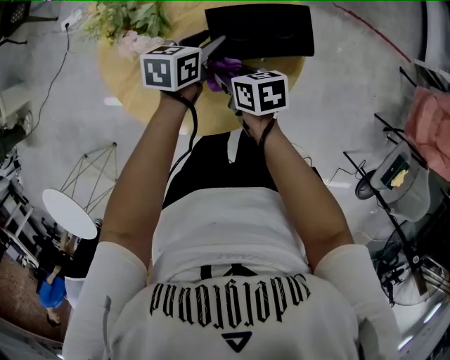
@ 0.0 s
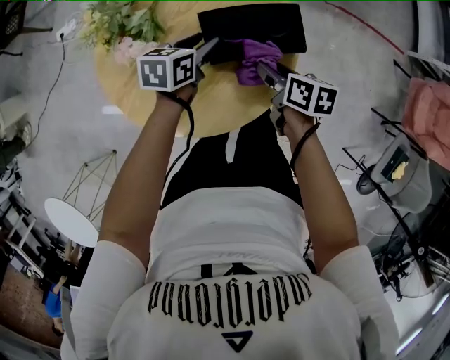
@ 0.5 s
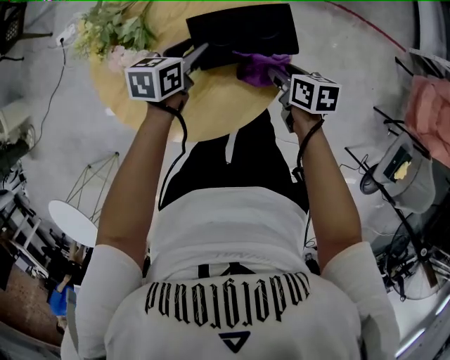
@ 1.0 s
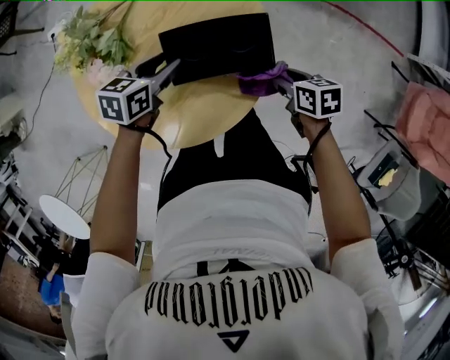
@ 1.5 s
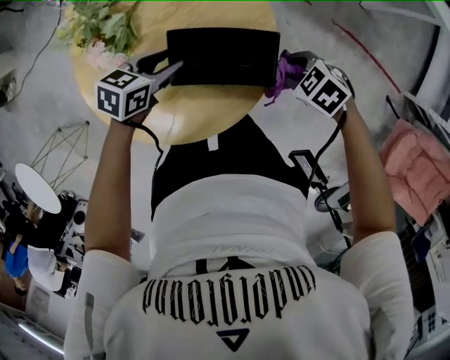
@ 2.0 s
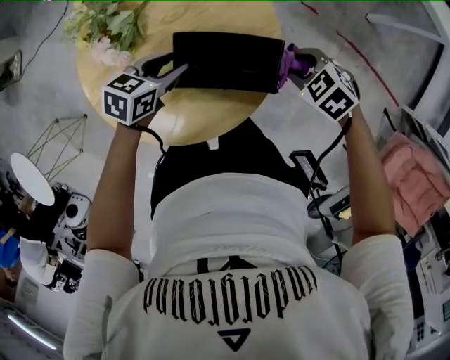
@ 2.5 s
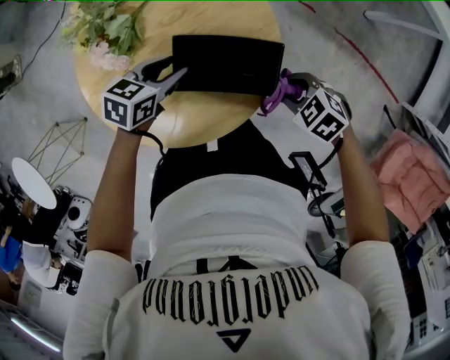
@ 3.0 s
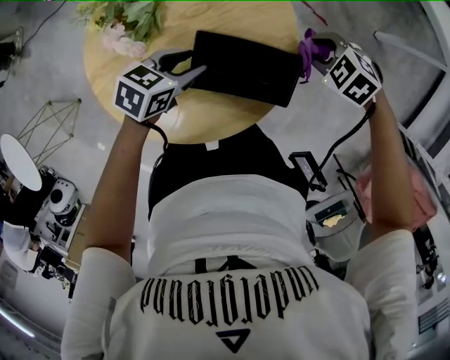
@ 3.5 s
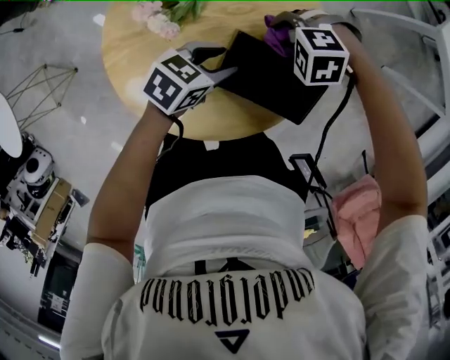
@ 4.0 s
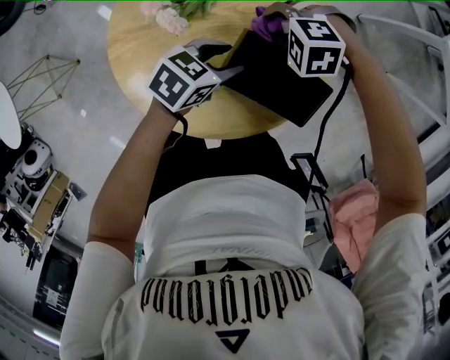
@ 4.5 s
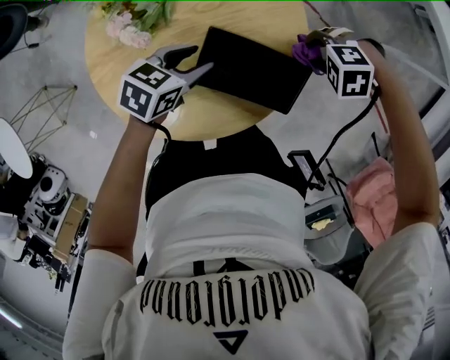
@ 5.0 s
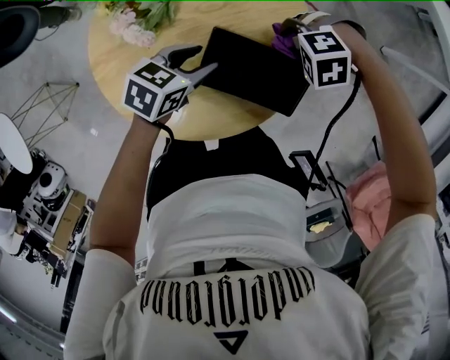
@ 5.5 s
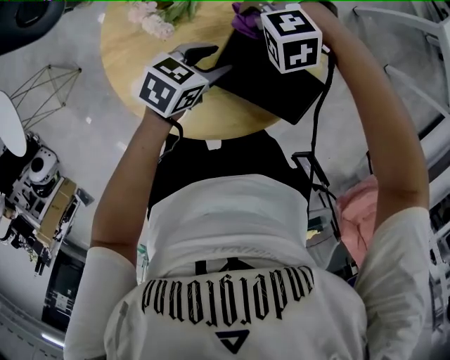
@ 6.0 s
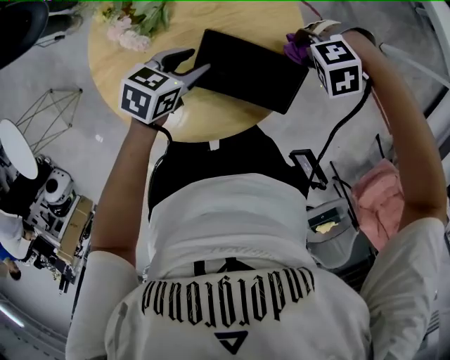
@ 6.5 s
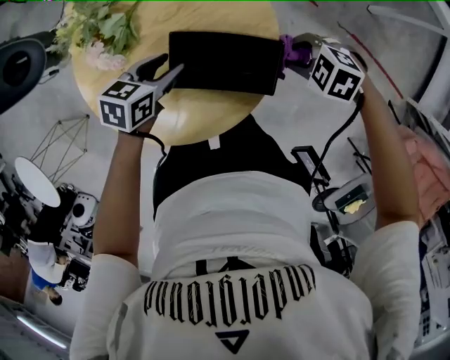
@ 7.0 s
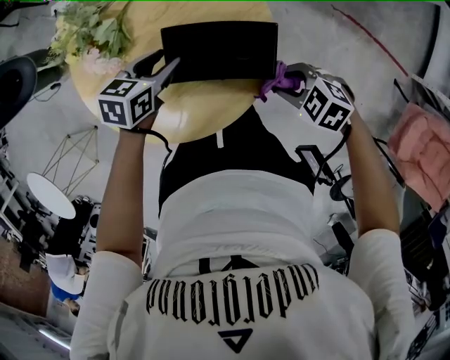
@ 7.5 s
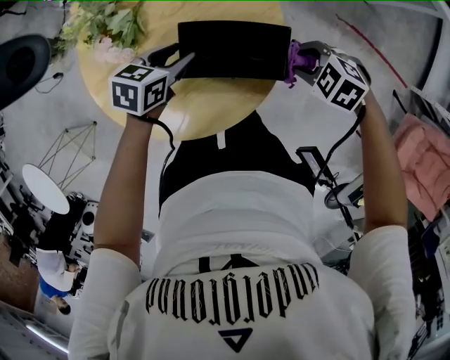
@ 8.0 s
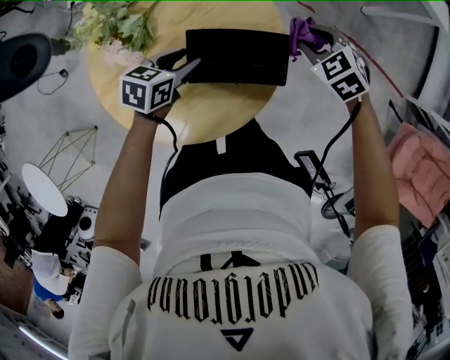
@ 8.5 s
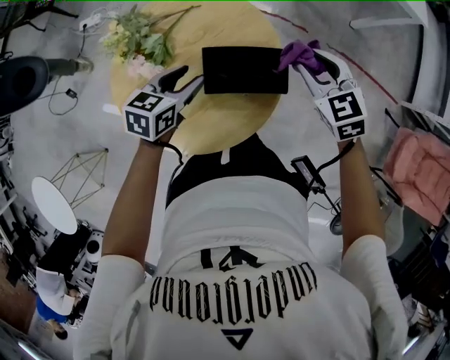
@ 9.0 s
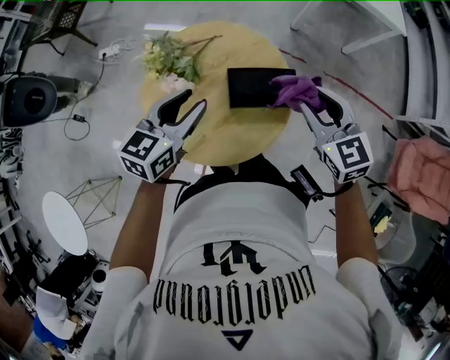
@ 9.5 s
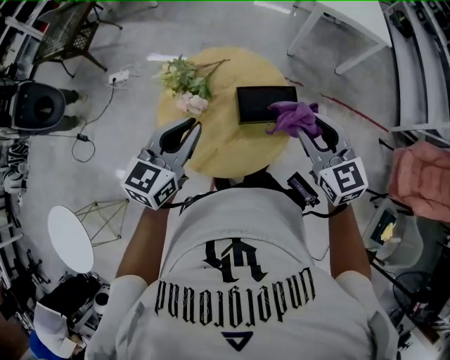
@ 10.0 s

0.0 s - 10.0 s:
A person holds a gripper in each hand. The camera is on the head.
0.0 s - 2.0 s: The right gripper ends up about 25 cm from where it was, and rolls counterclockwise, seen from behind, by roughly 60 degrees.
2.0 s - 4.0 s: The left gripper shifts by about 5 cm. Meanwhile the right gripper moves roughly 15 cm, and twists approximately 60 degrees counterclockwise, seen from behind.
6.0 s - 8.0 s: The right gripper ends up approximately 20 cm from where it was, and twists about 60 degrees clockwise, seen from behind.
8.0 s - 10.0 s: Both grippers move upward, about 35 cm. The right gripper tips its fingers upward by approximately 40 degrees. Meanwhile the left gripper tilts its fingers about 30 degrees upward, and closes.

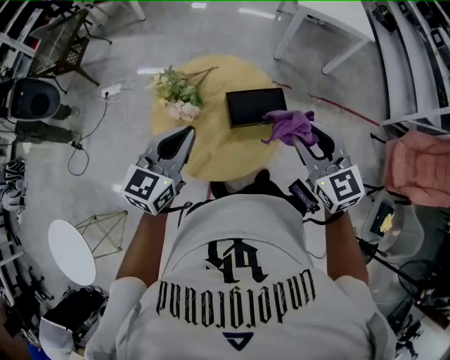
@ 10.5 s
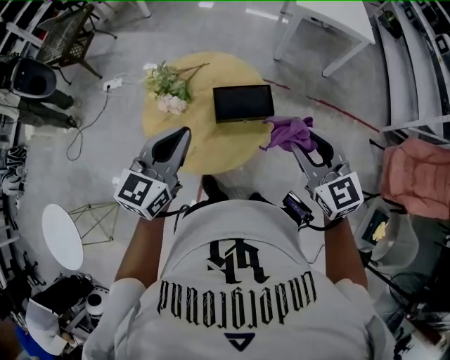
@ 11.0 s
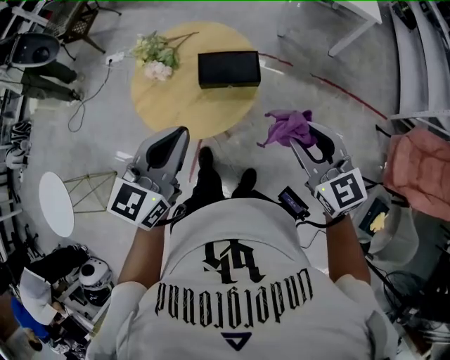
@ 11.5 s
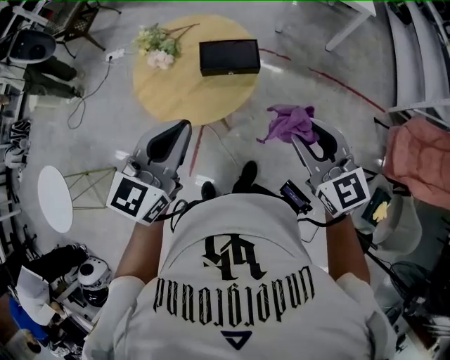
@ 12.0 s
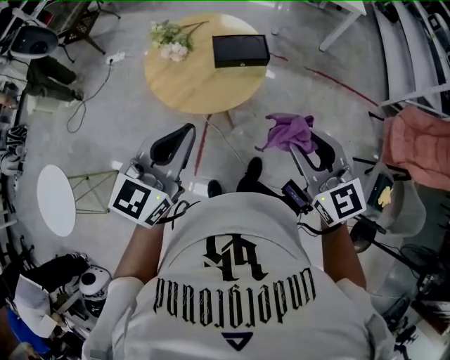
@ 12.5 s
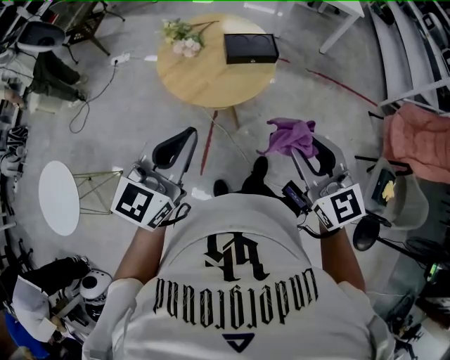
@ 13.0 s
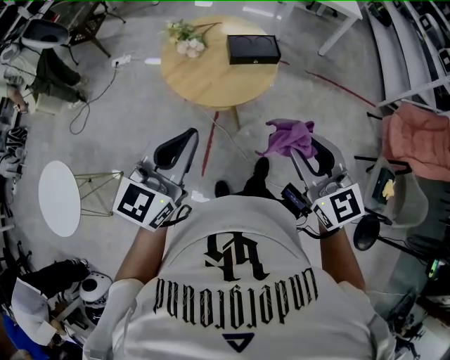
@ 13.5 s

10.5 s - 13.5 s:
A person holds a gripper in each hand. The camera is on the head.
10.5 s - 12.0 s: The two grippers go some 25 cm backward and to the right.
12.0 s - 13.5 s: Both grippers travel together backward and to the left, about 25 cm.

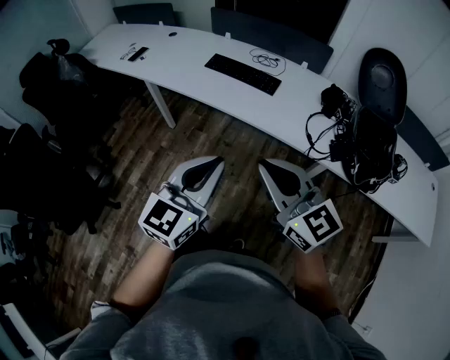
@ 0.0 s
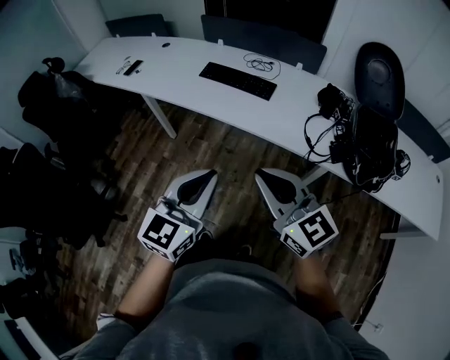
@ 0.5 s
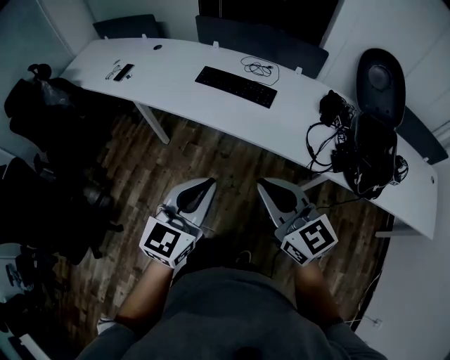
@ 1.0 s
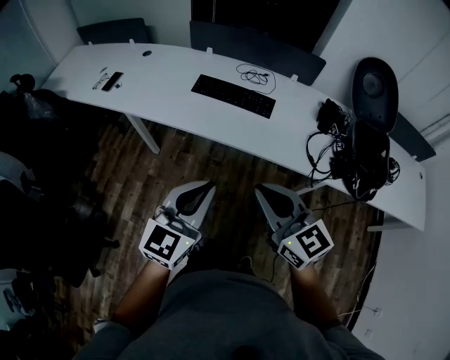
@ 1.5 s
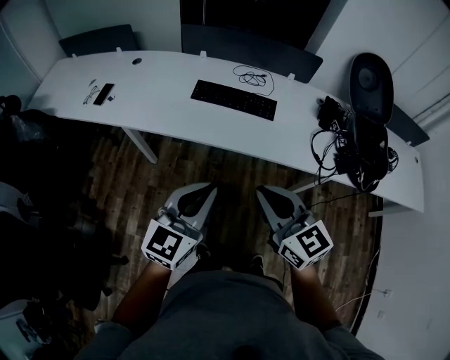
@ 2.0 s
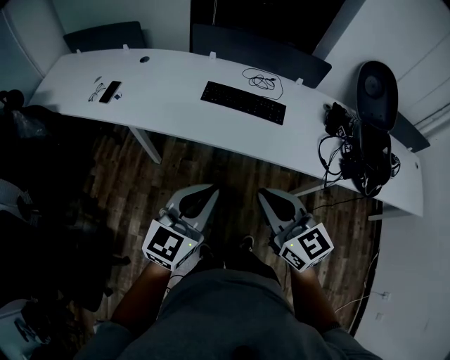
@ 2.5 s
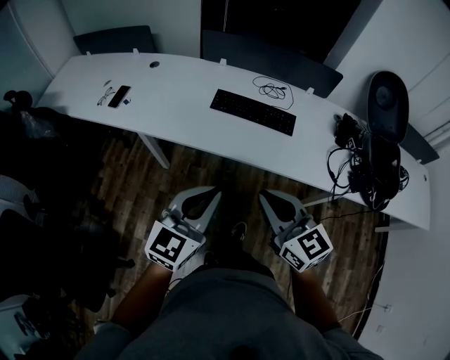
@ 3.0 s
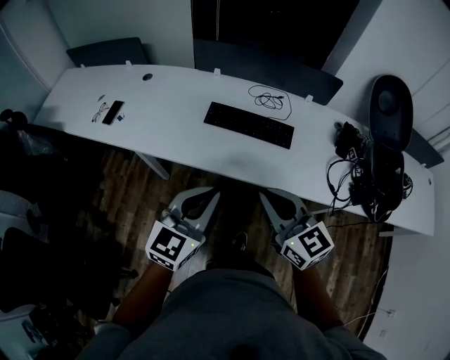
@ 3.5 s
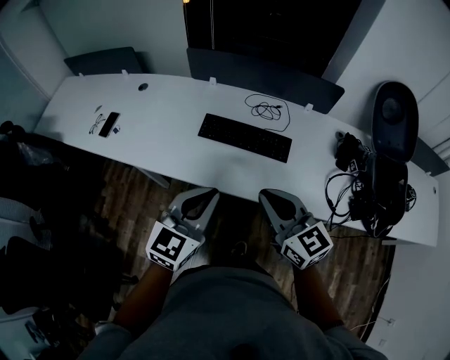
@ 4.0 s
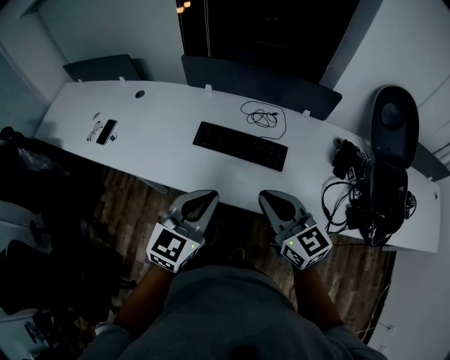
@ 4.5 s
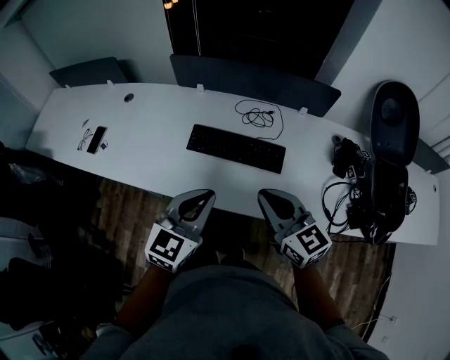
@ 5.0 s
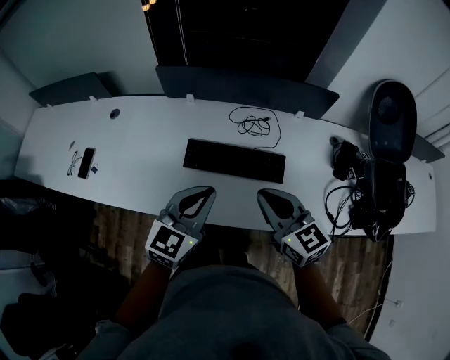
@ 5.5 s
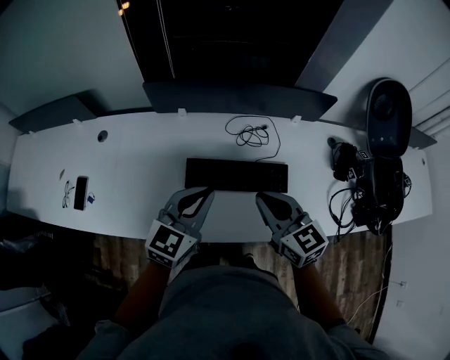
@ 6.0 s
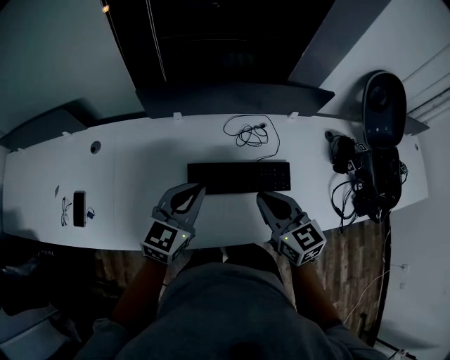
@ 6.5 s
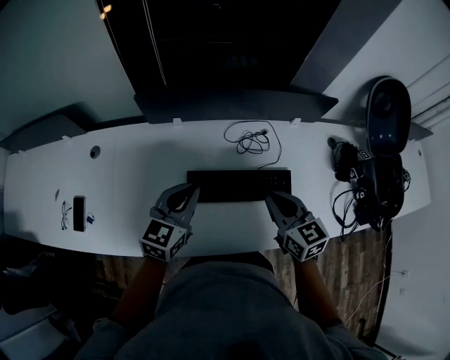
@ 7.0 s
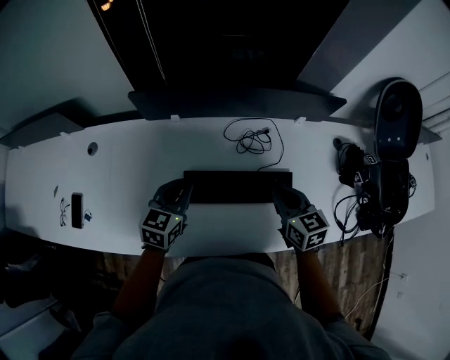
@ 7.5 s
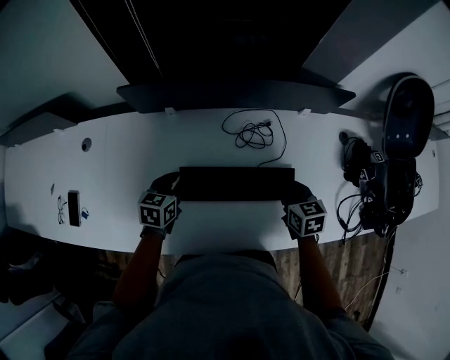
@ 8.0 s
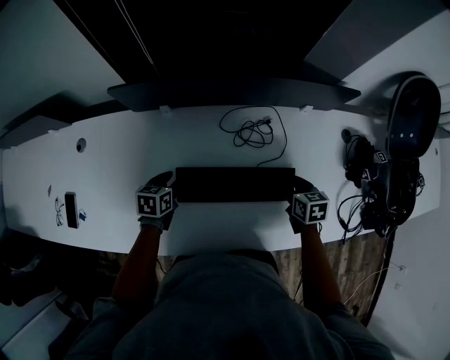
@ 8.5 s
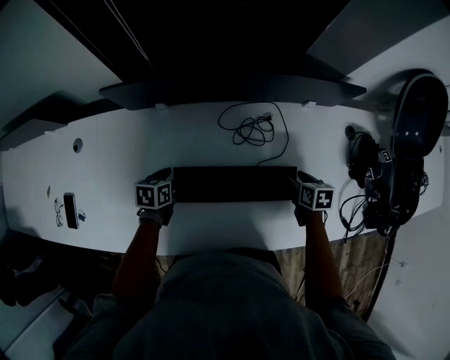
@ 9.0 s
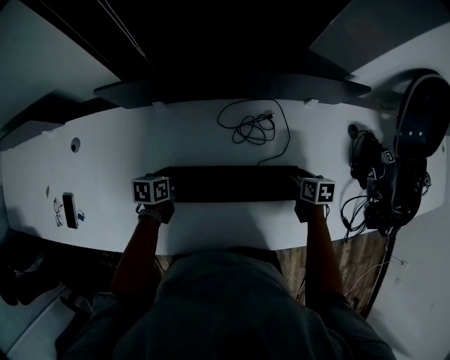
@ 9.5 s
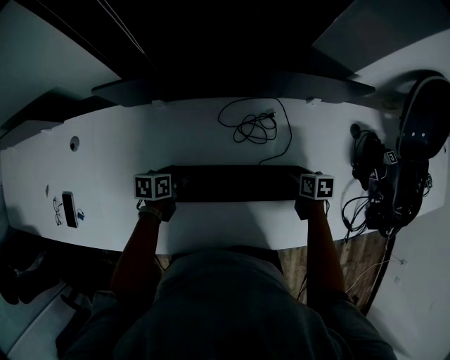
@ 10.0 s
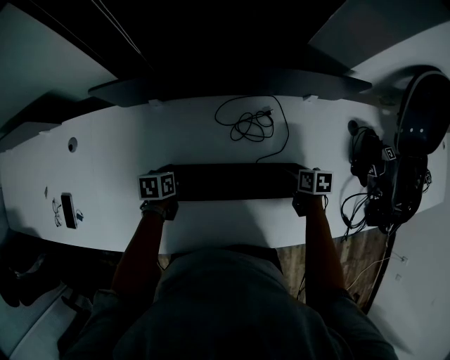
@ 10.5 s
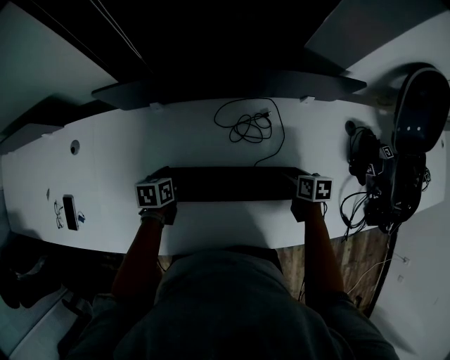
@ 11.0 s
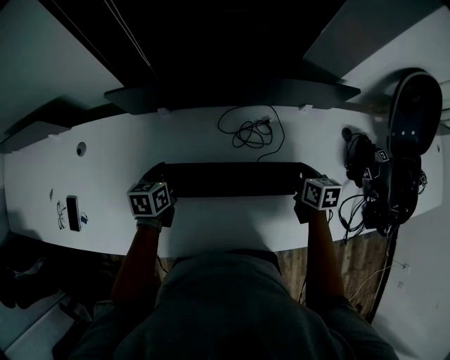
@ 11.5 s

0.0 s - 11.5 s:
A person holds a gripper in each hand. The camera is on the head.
0.0 s - 2.0 s: Both grippers move forward and to the left, roughly 25 cm. The right gripper changes its angle by about 20 degrees.
2.0 s - 4.0 s: Both grippers travel together forward, approximately 20 cm.
4.0 s - 6.0 s: The two grippers go some 25 cm forward.
6.0 s - 7.5 s: The right gripper is displaced forward, downward and to the right by roughly 15 cm; the left gripper is displaced downward, forward and to the left by roughly 20 cm.
7.5 s - 9.5 s: The right gripper travels downward and to the right by some 25 cm, swivels about 40 degrees, and opens its fingers, while the left gripper is displaced downward by about 20 cm, turns by approximately 40 degrees, and opens.
9.5 s - 11.5 s: Both grippers move upward, approximately 10 cm.

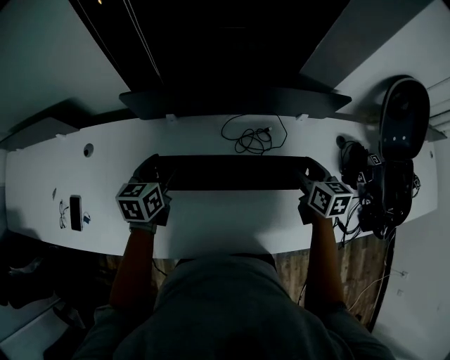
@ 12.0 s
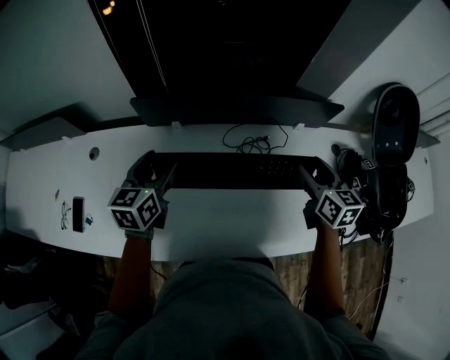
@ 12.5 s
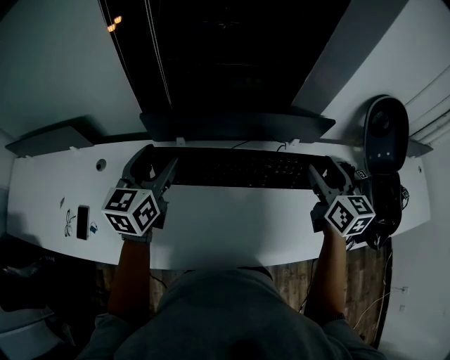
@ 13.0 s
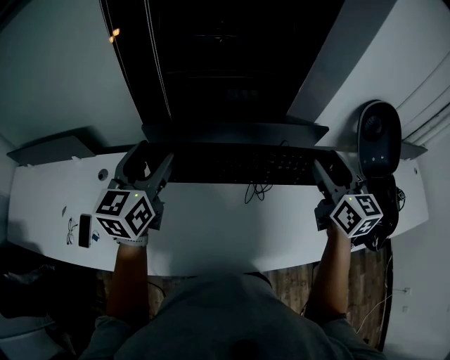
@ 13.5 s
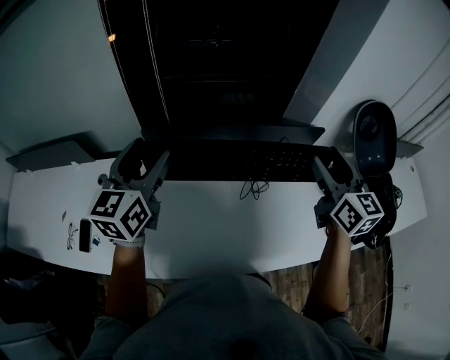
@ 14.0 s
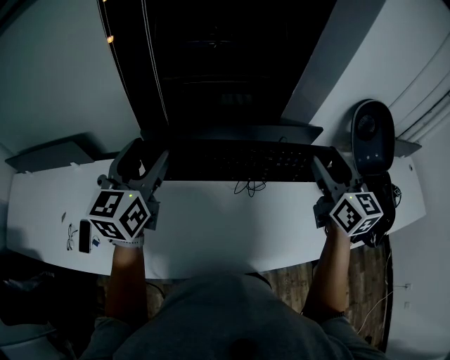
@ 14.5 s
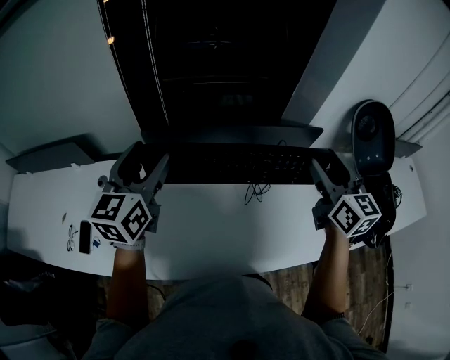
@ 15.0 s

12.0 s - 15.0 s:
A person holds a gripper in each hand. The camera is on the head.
12.0 s - 13.5 s: Both grippers move upward, roughly 25 cm. The right gripper changes its angle by some 30 degrees; the left gripper turns by approximately 30 degrees.
13.5 s - 15.0 s: The grippers move only a little.
